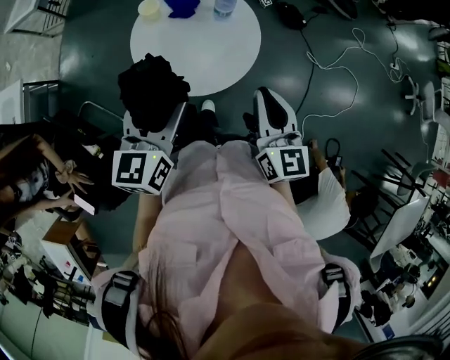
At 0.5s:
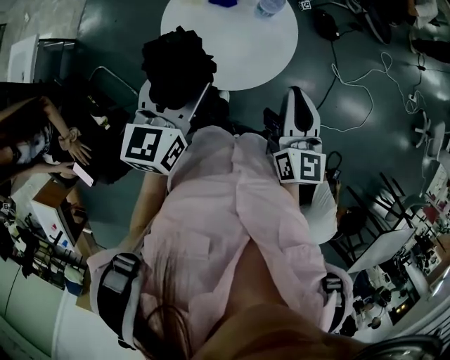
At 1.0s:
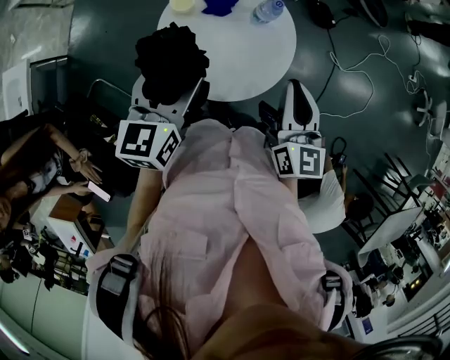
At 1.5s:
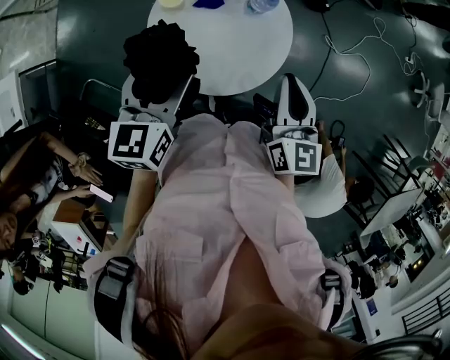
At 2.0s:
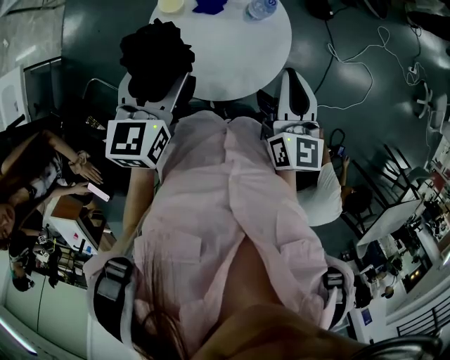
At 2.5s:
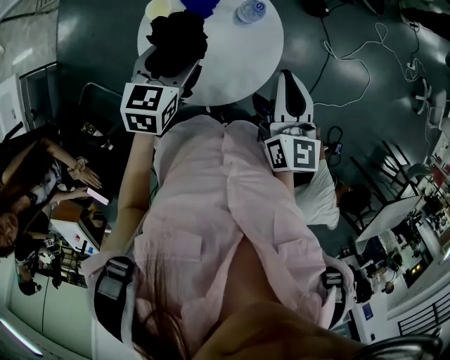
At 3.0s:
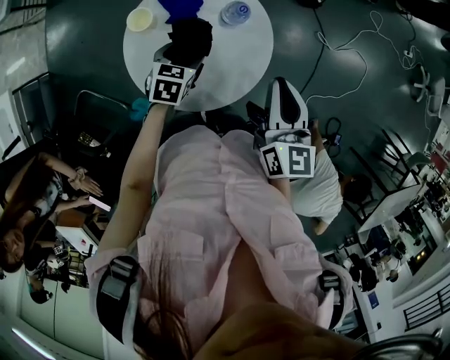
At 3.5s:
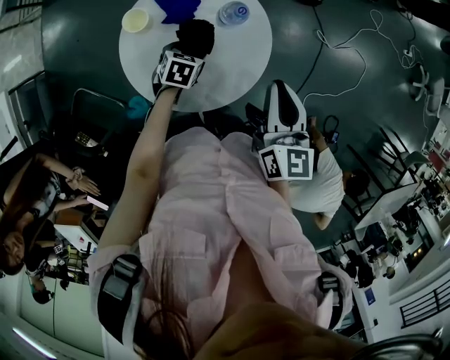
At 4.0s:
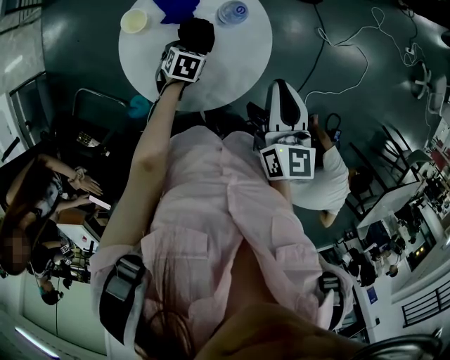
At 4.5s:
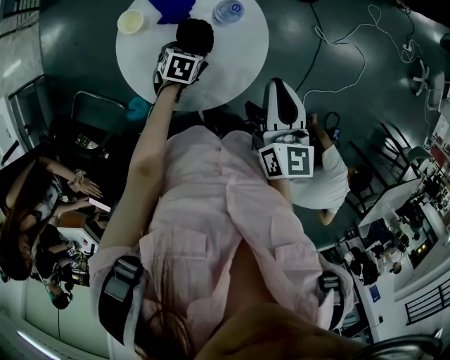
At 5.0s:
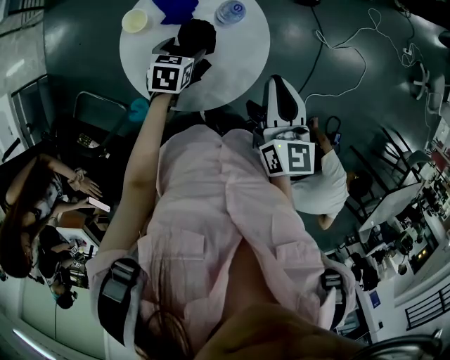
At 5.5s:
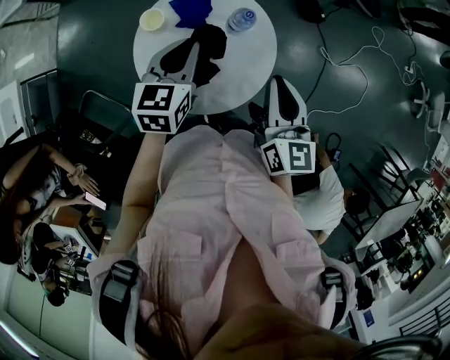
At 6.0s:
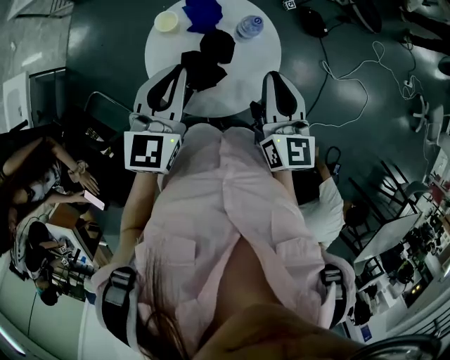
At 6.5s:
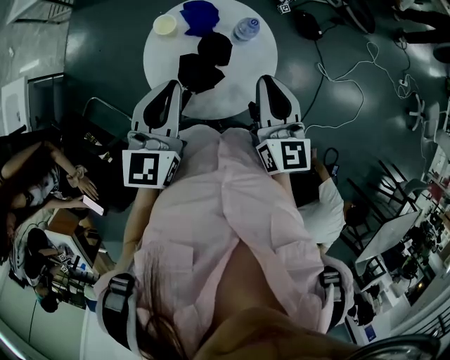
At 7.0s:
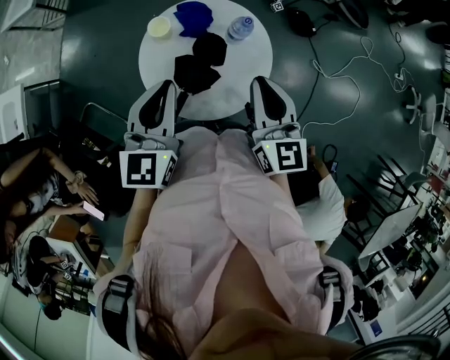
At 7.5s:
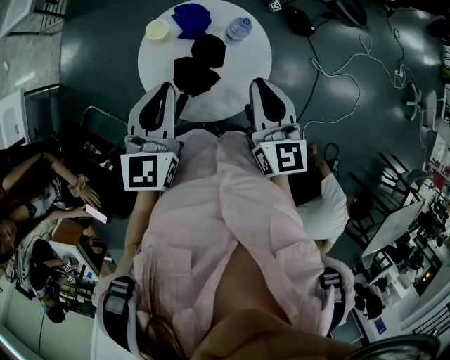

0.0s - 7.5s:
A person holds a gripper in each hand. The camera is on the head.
0.0s - 2.0s: Both grippers travel together forward and to the left, about 15 cm.
2.0s - 4.0s: The left gripper goes about 30 cm downward, and tilts its fingers about 40 degrees downward; the right gripper moves approximately 5 cm.
4.0s - 5.5s: The left gripper travels upward by about 25 cm, tilts its fingers roughly 30 degrees upward, and closes up.
5.5s - 7.5s: The right gripper is displaced to the left by about 5 cm, while the left gripper goes roughly 15 cm upward, backward and to the left.

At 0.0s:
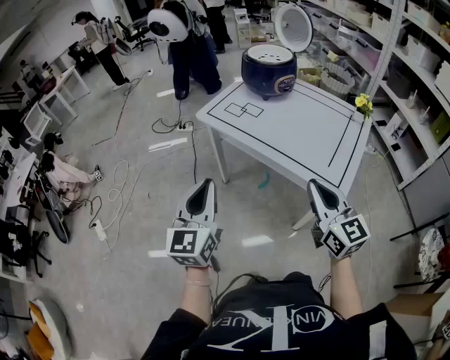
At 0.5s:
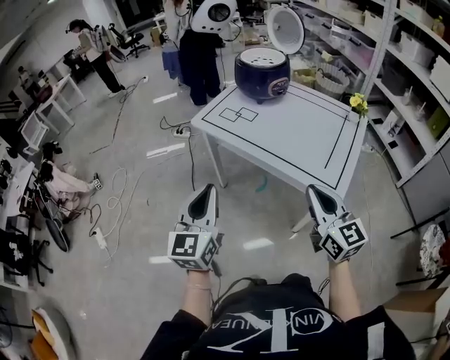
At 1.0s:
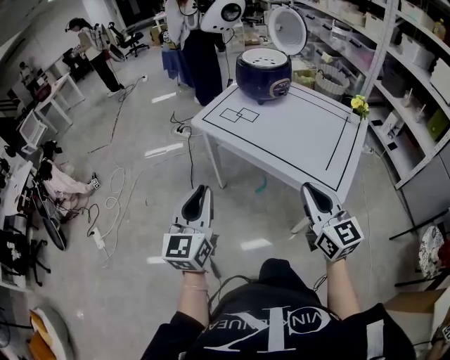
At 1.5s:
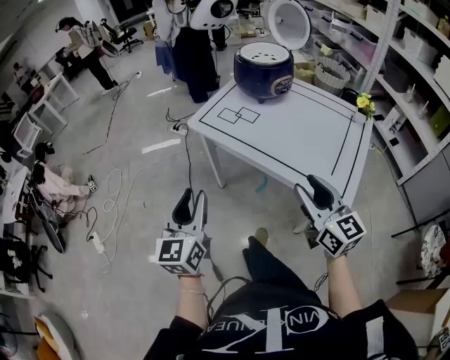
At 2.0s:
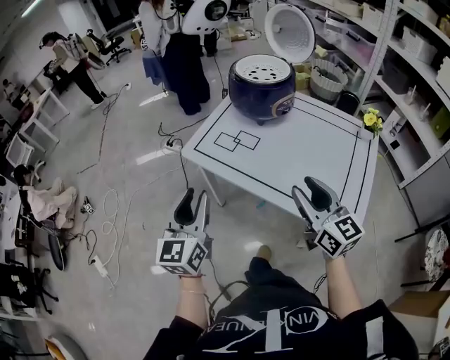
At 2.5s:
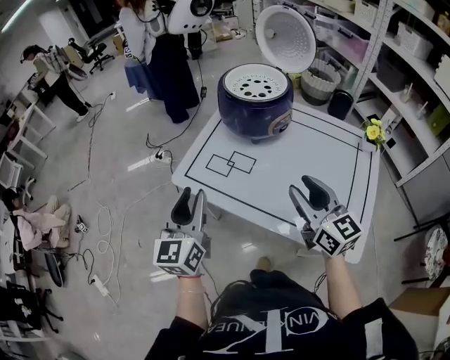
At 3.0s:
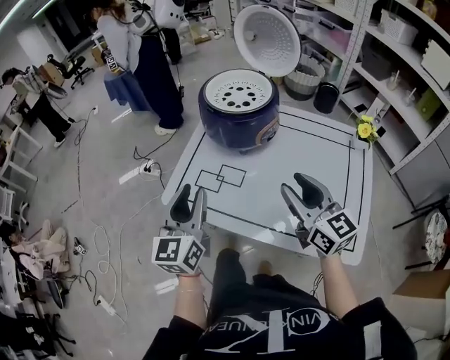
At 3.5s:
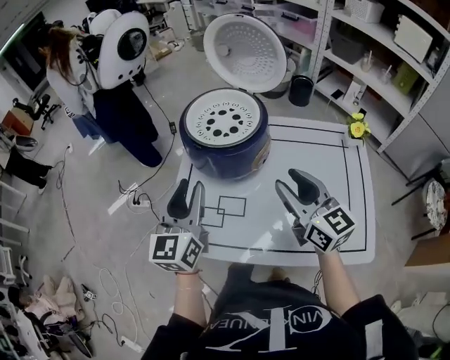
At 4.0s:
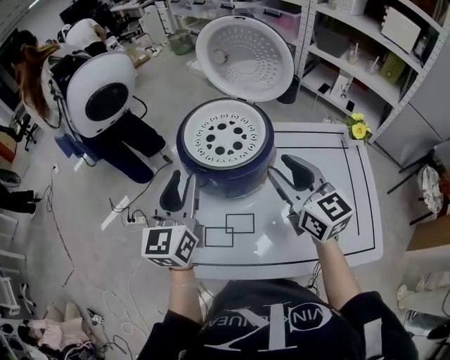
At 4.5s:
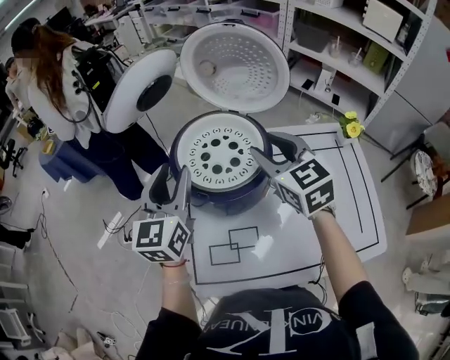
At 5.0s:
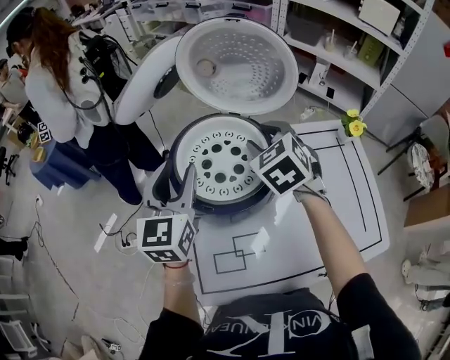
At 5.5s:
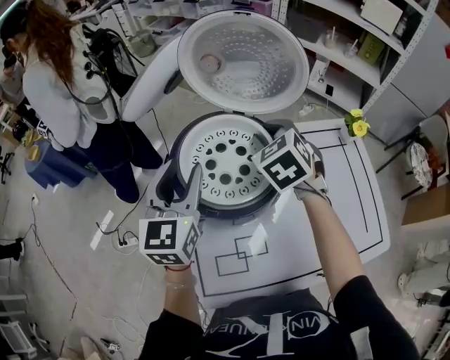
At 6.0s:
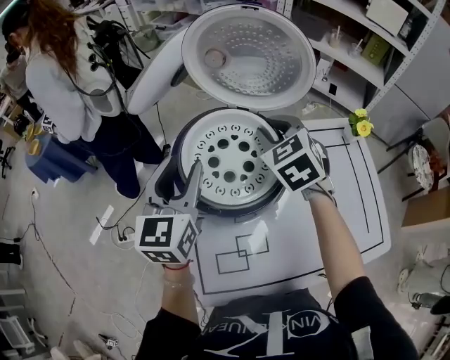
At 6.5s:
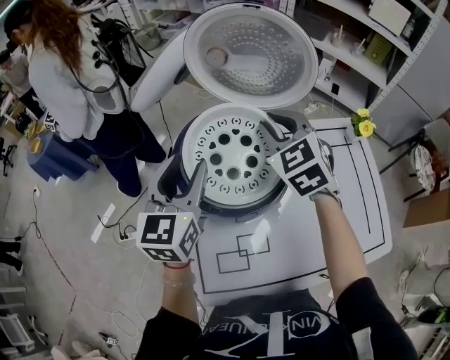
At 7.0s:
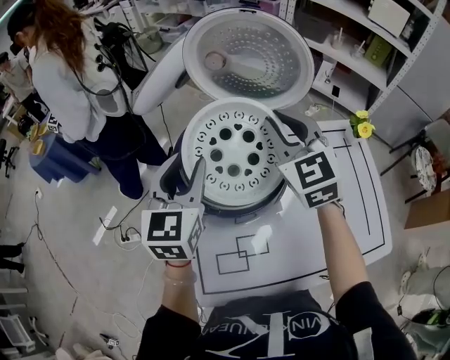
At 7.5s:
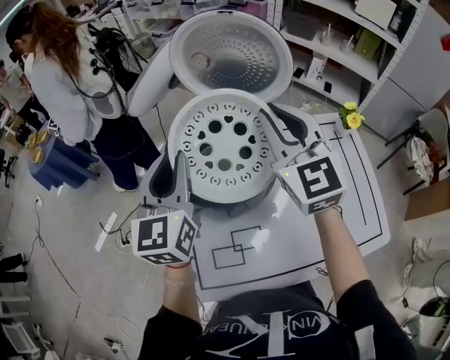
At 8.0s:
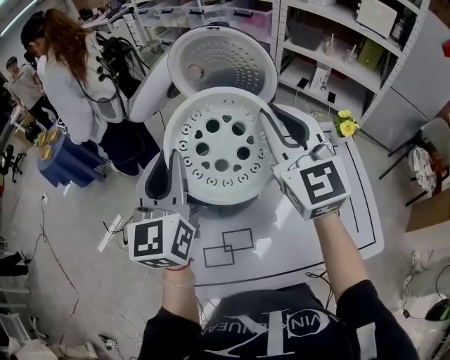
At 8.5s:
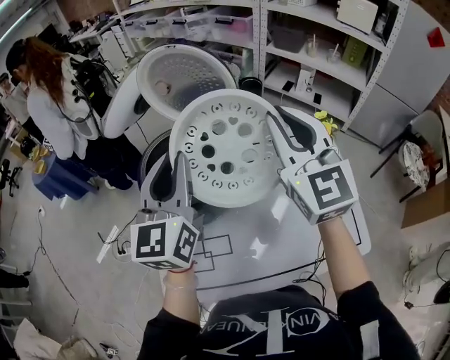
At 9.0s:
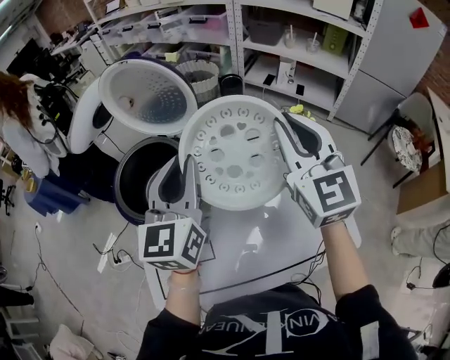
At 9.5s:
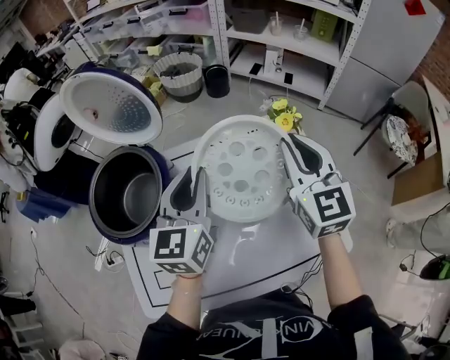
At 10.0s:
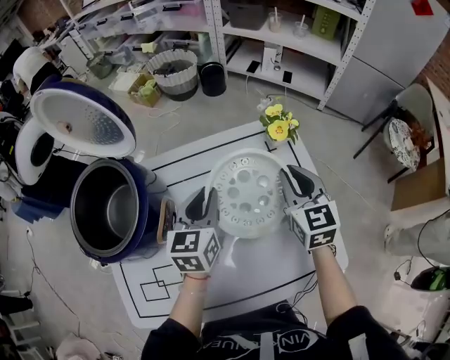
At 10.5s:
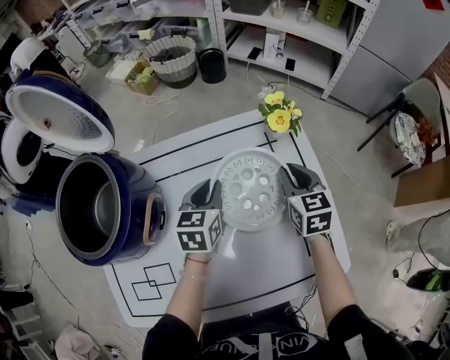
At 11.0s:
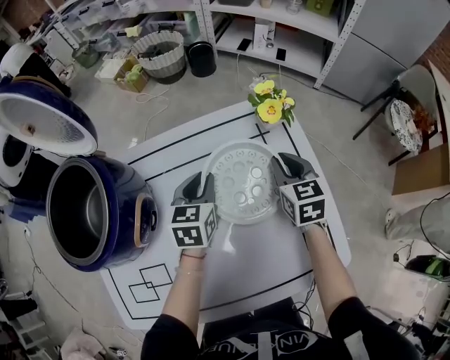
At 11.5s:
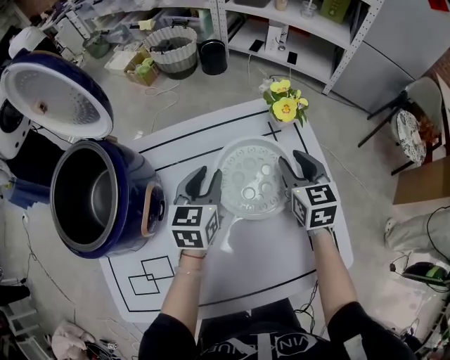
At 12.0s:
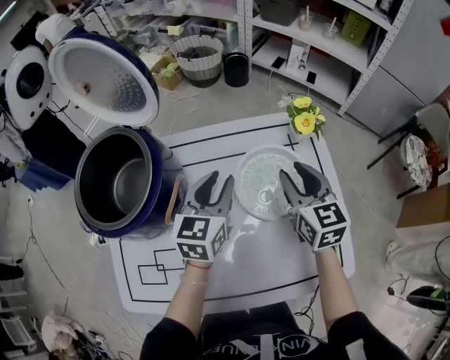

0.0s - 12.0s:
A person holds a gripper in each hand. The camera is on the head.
0.0s - 2.0s: Both grippers move forward, approximately 20 cm. The left gripper opens; the right gripper opens.
2.0s - 4.0s: The right gripper ends up approximately 35 cm from where it was, and swivels approximately 30 degrees. Meanwhile the left gripper ends up approximately 40 cm from where it was, and changes its angle by some 30 degrees.
4.0s - 6.0s: The two grippers go roughly 15 cm forward. The right gripper angles its fingers downward, by roughly 30 degrees.
6.0s - 8.0s: The right gripper shifts some 20 cm upward and backward, and points its fingers roughly 40 degrees further upward. The left gripper travels upward and backward by approximately 10 cm, and closes.
8.0s - 10.0s: Both grippers travel together to the right and downward, approximately 40 cm. The left gripper swivels approximately 30 degrees; the right gripper rotates approximately 30 degrees.
10.0s - 12.0s: The right gripper reaches roughly 10 cm downward, then returns, and opens up. Meanwhile the left gripper goes downward and returns, some 10 cm each way.

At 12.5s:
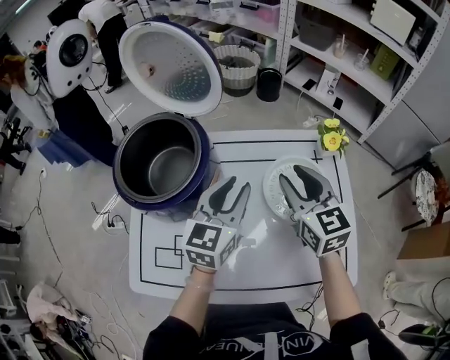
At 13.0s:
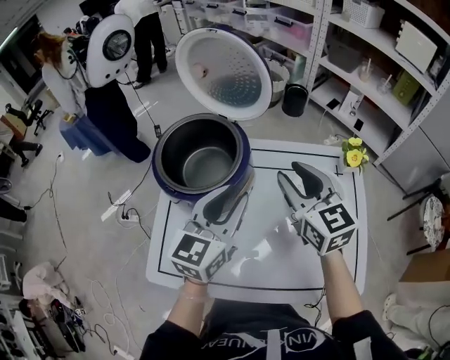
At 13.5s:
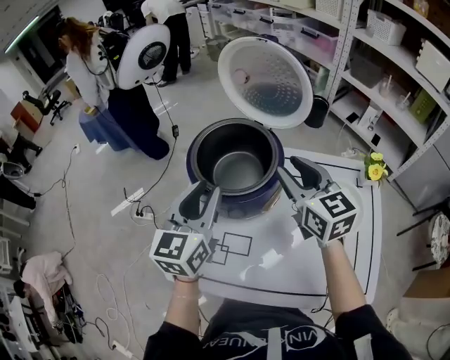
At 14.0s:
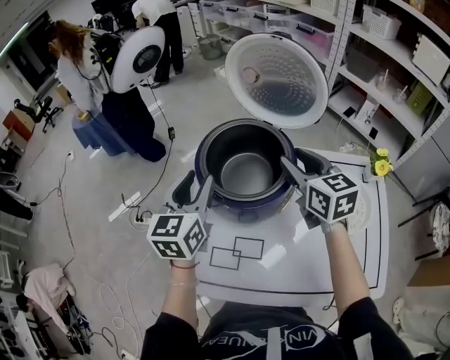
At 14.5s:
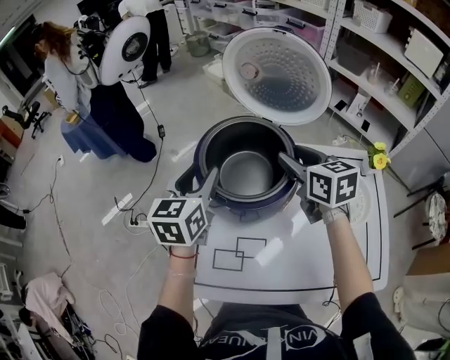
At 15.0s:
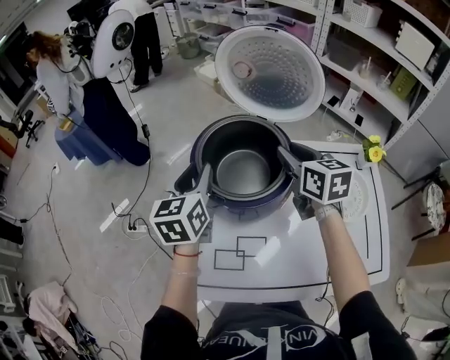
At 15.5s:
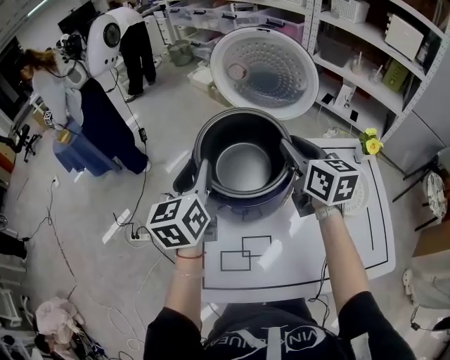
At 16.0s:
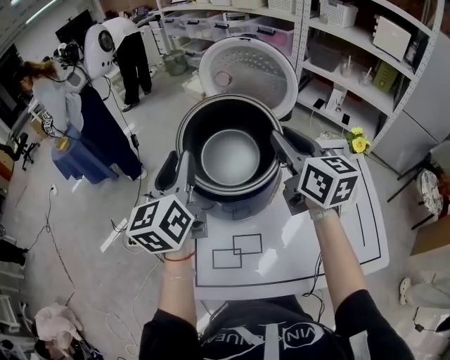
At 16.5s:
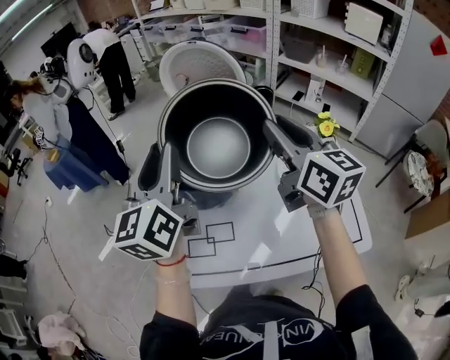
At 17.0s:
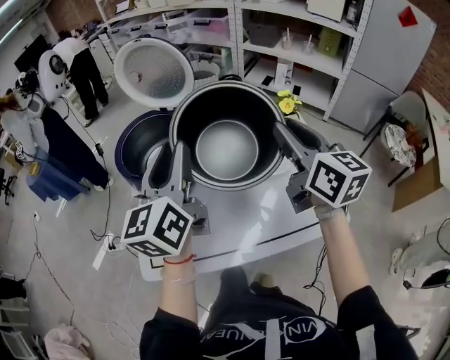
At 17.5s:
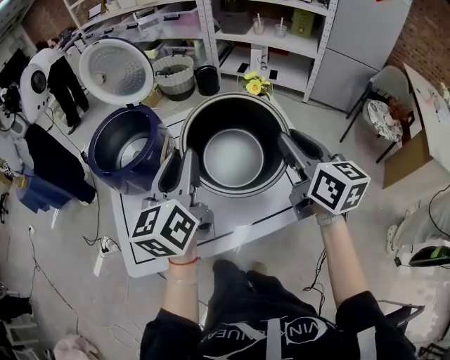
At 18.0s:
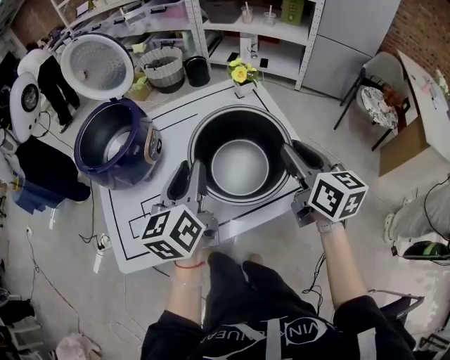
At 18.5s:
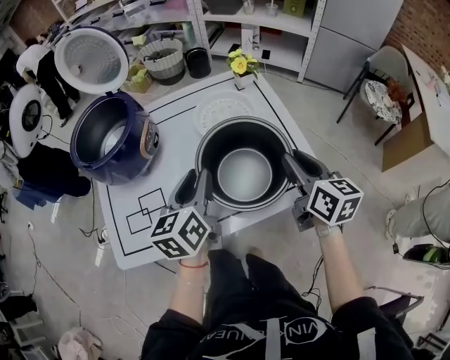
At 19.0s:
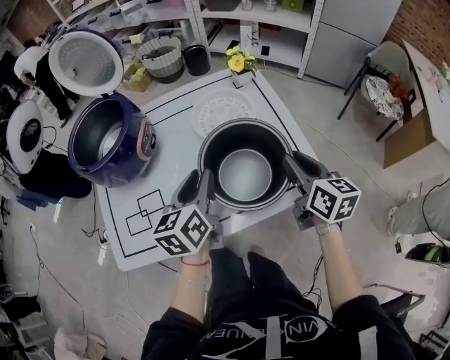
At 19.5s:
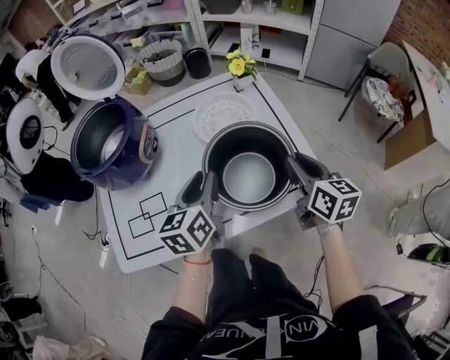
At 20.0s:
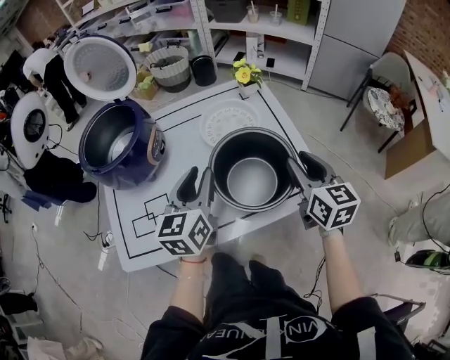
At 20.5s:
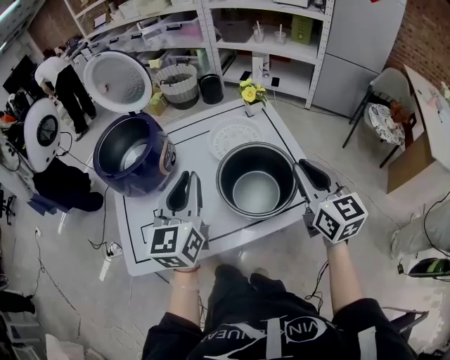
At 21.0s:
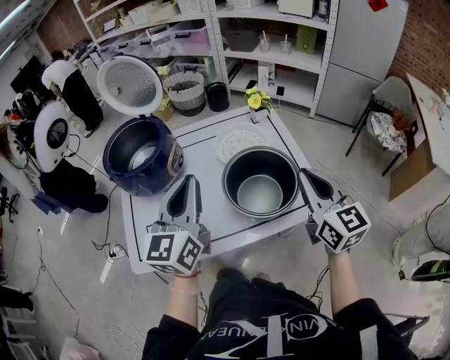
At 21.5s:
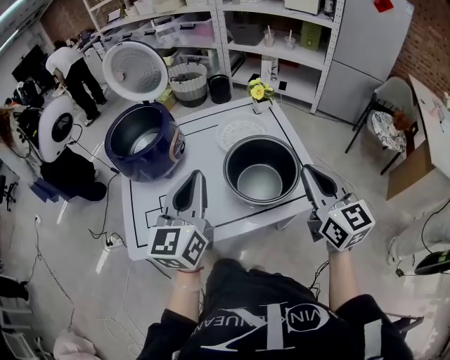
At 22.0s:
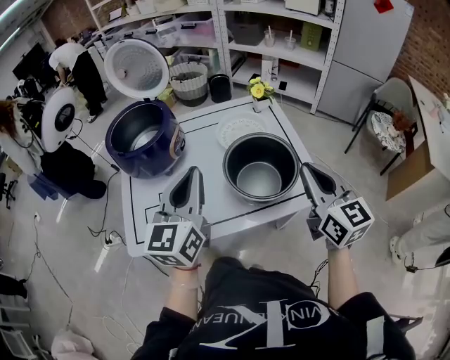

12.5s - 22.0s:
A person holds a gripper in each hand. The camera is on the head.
12.5s - 14.5s: The right gripper is displaced to the left and forward by some 25 cm. Meanwhile the left gripper shifts some 30 cm to the left.
14.5s - 16.5s: The right gripper travels upward, backward and to the right by roughly 20 cm, and turns by approximately 30 degrees; the left gripper travels upward and backward by about 20 cm, and turns by approximately 30 degrees.
16.5s - 18.0s: The right gripper moves to the right, backward and downward, approximately 35 cm, and rotates roughly 30 degrees. Meanwhile the left gripper shifts approximately 35 cm to the right, downward and backward, and swivels approximately 30 degrees.
18.0s - 20.0s: The right gripper heads downward, covering roughly 5 cm.
20.0s - 22.0s: Both grippers travel together upward and backward, approximately 15 cm. The left gripper closes its fingers; the right gripper closes.
